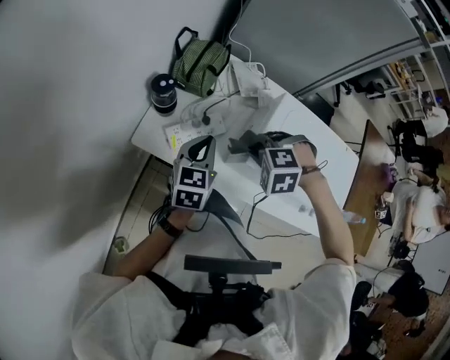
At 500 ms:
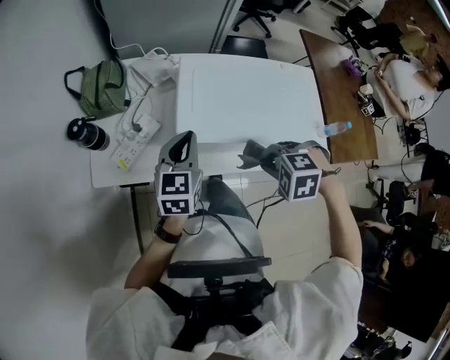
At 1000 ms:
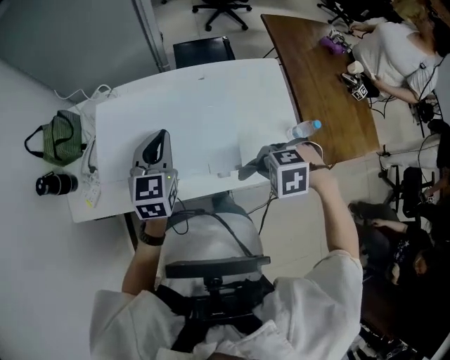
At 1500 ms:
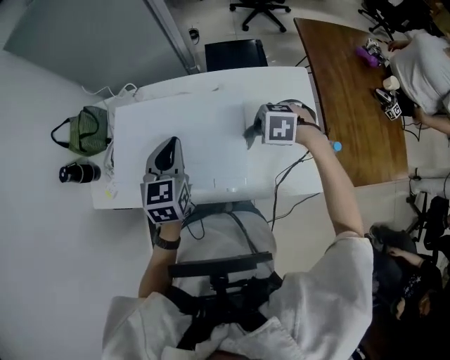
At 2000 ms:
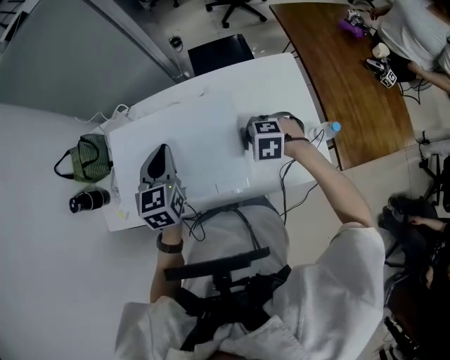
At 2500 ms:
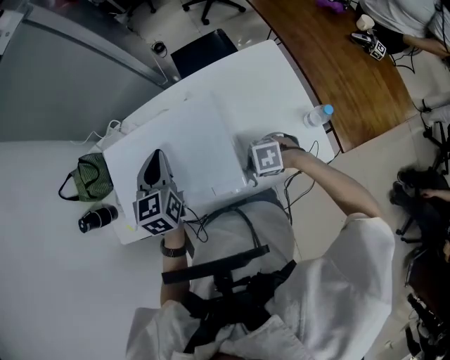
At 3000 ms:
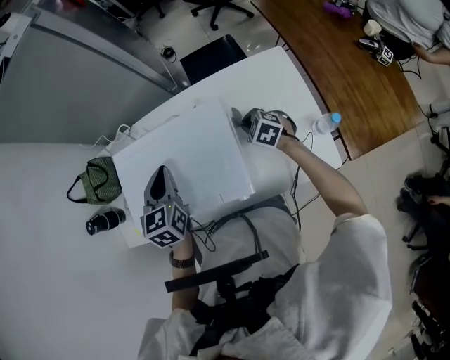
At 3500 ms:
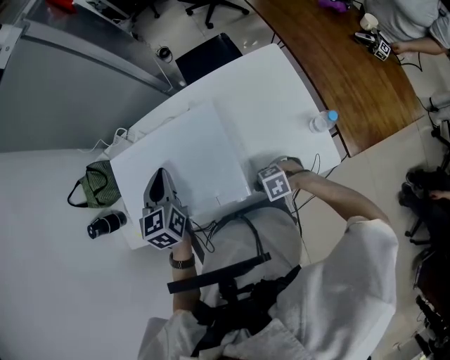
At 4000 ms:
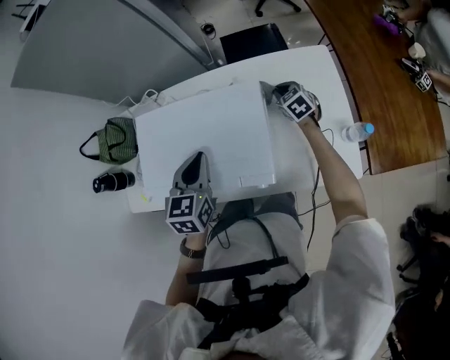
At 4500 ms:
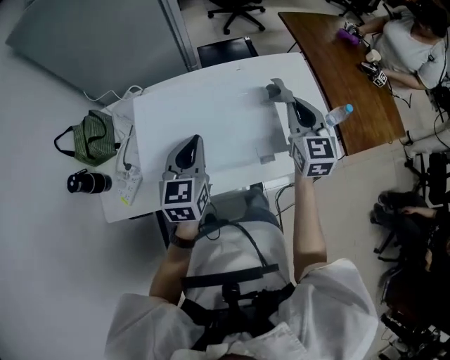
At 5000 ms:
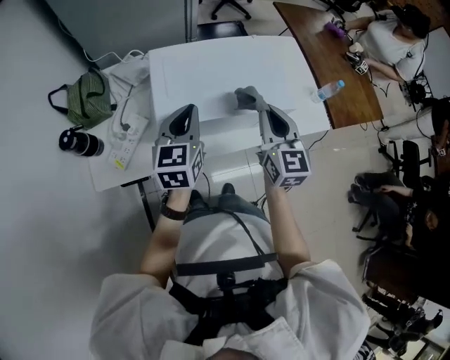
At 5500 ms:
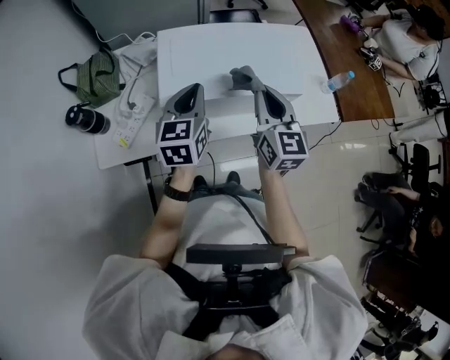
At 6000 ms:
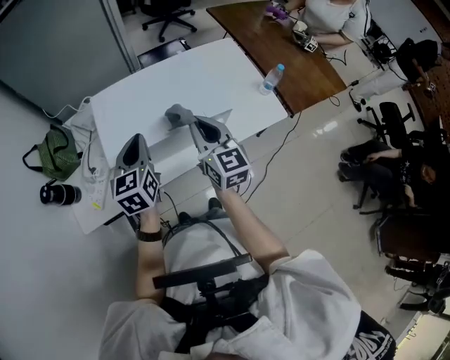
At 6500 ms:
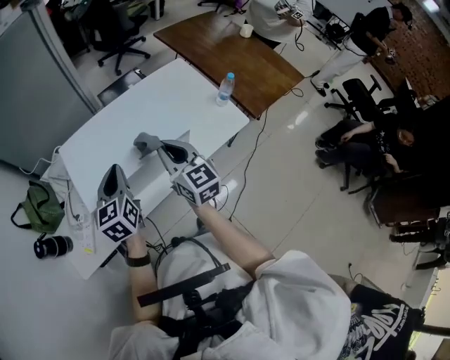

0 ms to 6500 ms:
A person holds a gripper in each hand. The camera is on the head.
0 ms to 2000 ms: The two grippers travel together, approximately 70 cm. The right gripper twists roughly 40 degrees clockwise, seen from behind. The left gripper swivels roughly 20 degrees.
2000 ms to 4500 ms: The right gripper is displaced upward by some 20 cm, and angles its fingers upward, by roughly 60 degrees. Meanwhile the left gripper changes place by approximately 15 cm.
4500 ms to 6500 ms: The left gripper travels backward by some 10 cm, and goes to the left and returns, roughly 15 cm each way; the right gripper moves backward and to the left, approximately 25 cm.

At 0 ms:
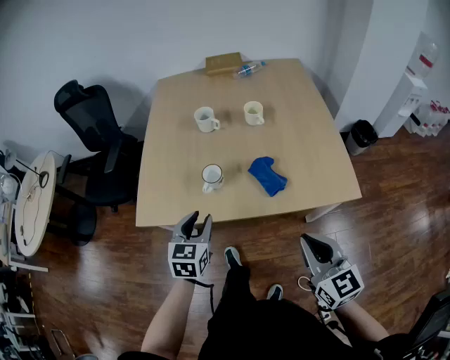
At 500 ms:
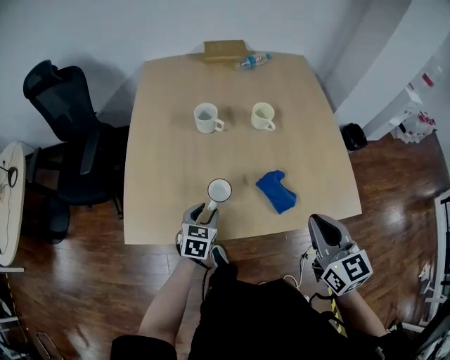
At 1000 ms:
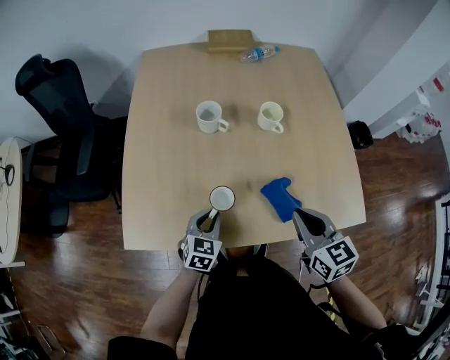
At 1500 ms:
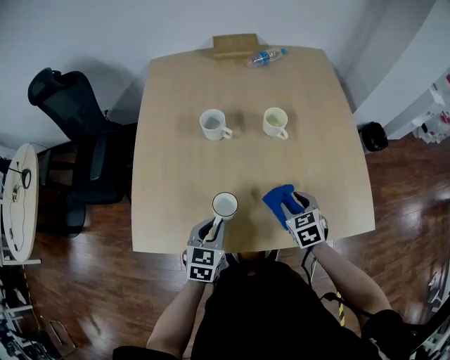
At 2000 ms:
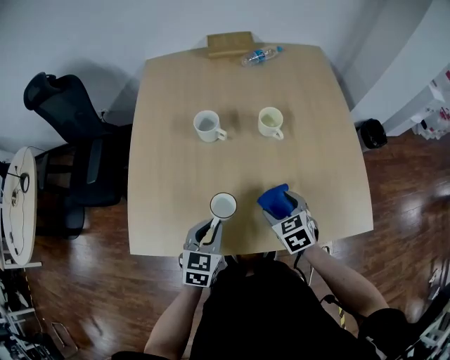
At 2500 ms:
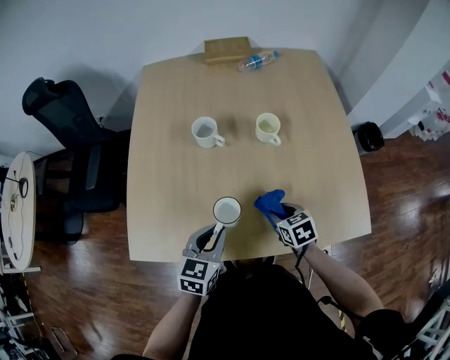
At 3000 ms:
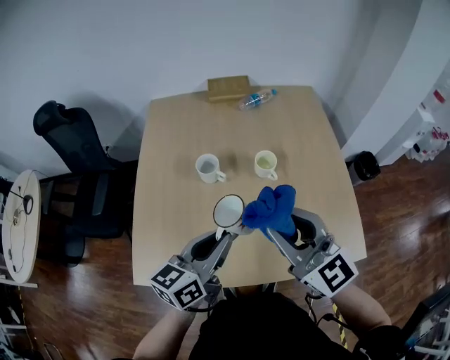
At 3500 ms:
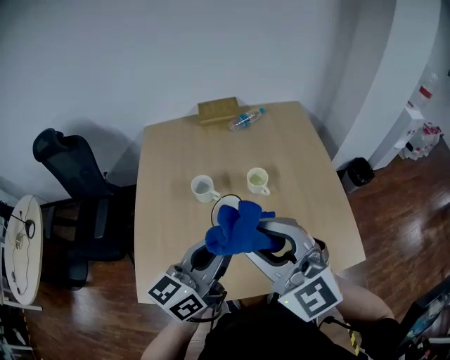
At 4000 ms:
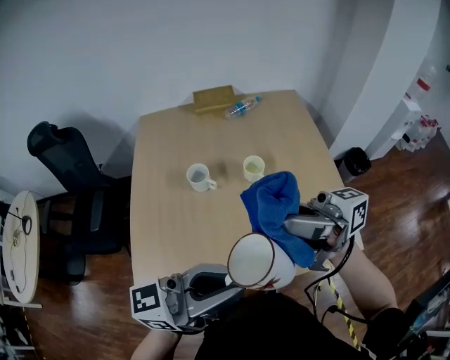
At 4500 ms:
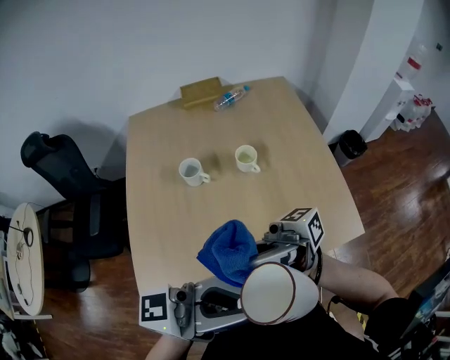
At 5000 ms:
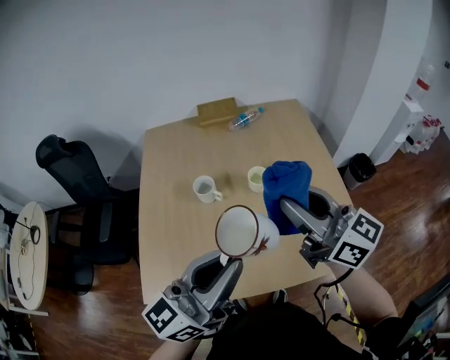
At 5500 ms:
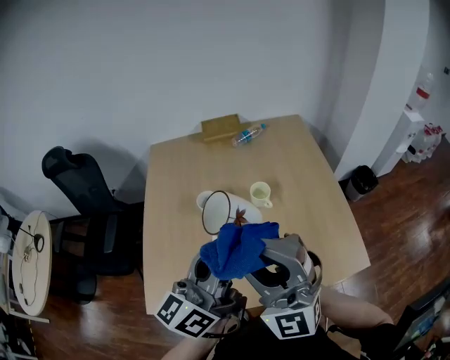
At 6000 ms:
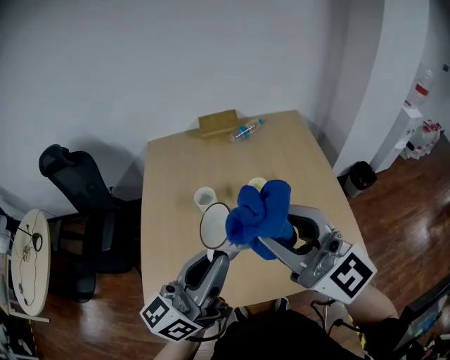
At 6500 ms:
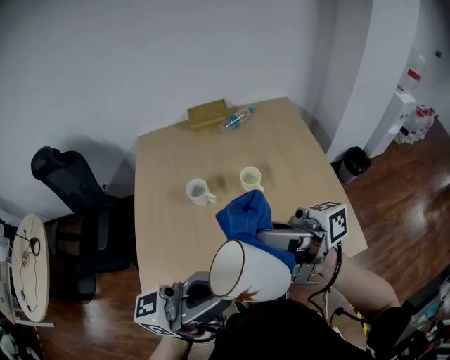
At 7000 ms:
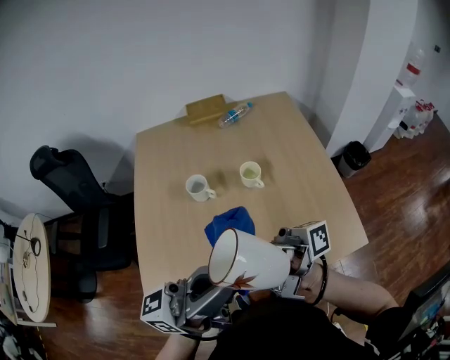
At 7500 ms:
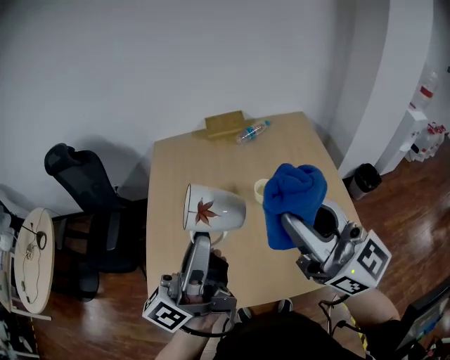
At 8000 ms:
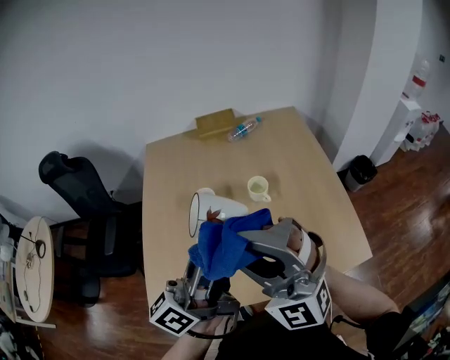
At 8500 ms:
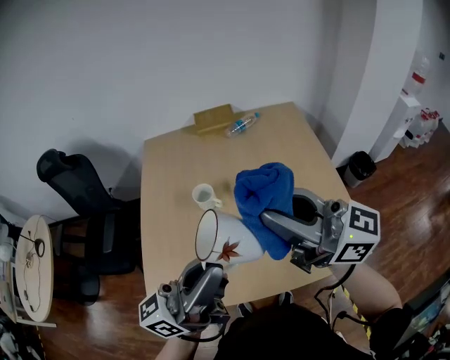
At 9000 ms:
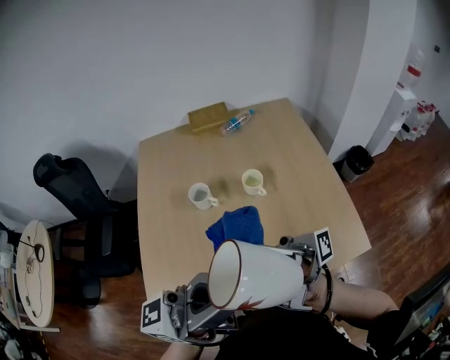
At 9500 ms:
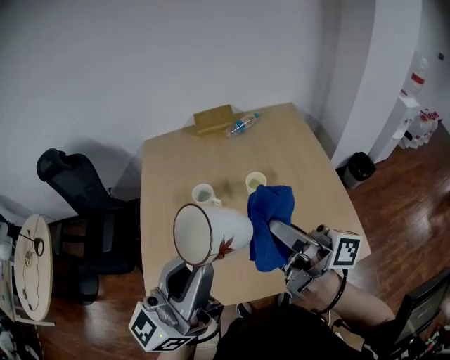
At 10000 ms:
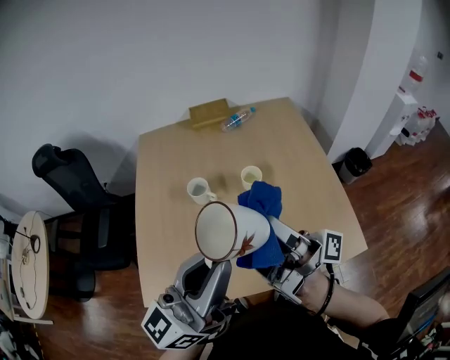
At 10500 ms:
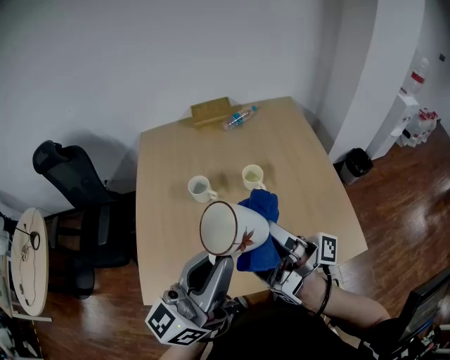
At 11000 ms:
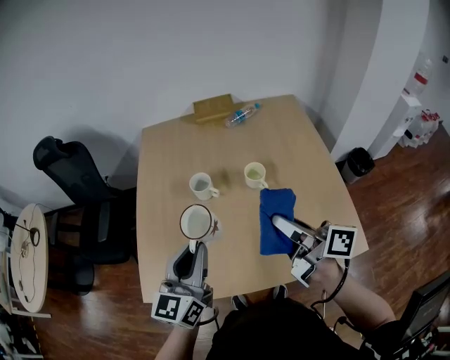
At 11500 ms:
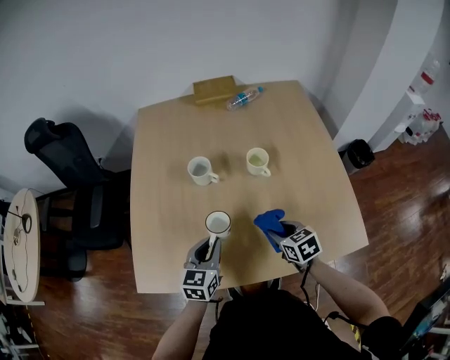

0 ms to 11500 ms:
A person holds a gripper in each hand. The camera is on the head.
0 ms to 2000 ms: The left gripper is displaced forward and downward by approximately 15 cm. The right gripper goes roughly 35 cm forward and downward, tips its fingers downward by approximately 40 degrees, and opens up.
2000 ms to 4000 ms: Both grippers travel together upward, some 40 cm. The right gripper tilts its fingers approximately 80 degrees upward, and closes its fingers, while the left gripper tilts its fingers about 60 degrees upward.
4000 ms to 6000 ms: The right gripper rolls counterclockwise, seen from behind, by roughly 60 degrees; the left gripper changes place by roughly 10 cm, and changes its angle by roughly 30 degrees.
6000 ms to 7500 ms: The left gripper turns by roughly 30 degrees.
7500 ms to 9500 ms: The right gripper heads downward, covering about 10 cm, and twists approximately 60 degrees clockwise, seen from behind; the left gripper changes its angle by roughly 30 degrees.
9500 ms to 11500 ms: The two grippers go roughly 35 cm downward. The left gripper tips its fingers downward by some 50 degrees, while the right gripper points its fingers some 70 degrees further downward.

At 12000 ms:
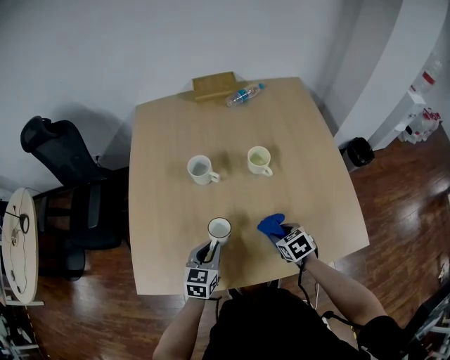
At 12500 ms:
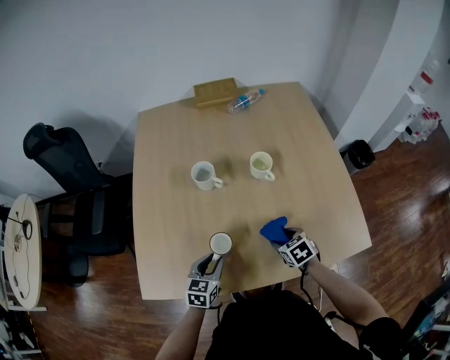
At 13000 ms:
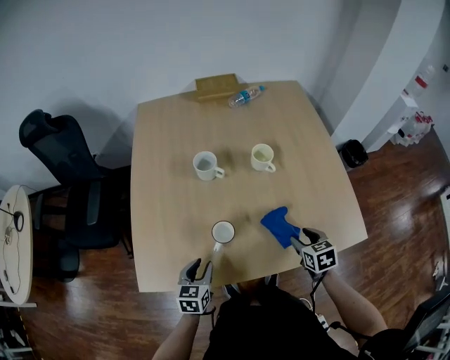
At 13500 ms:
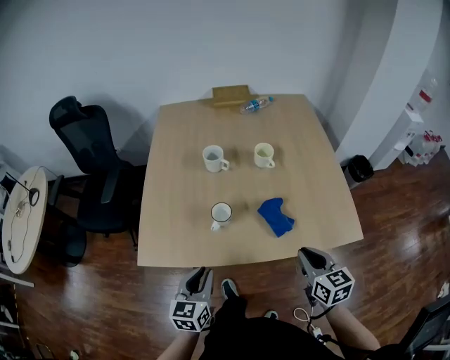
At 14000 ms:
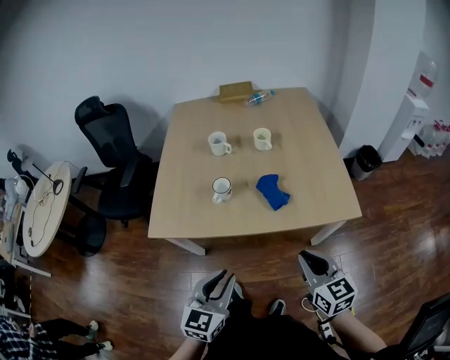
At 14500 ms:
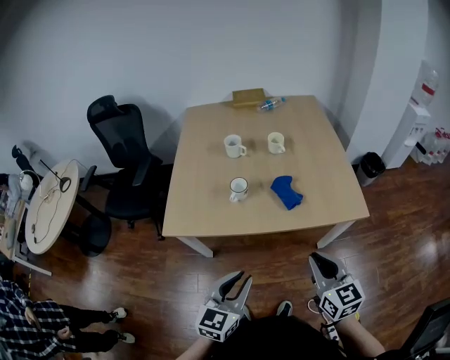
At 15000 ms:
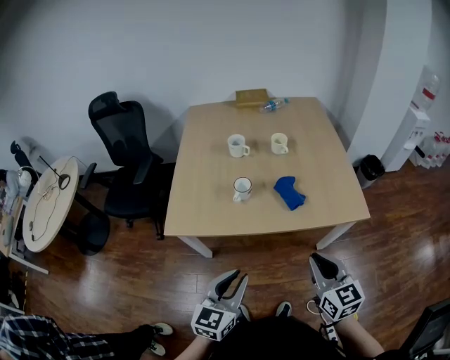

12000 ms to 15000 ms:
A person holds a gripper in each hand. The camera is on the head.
12000 ms to 13500 ms: The left gripper travels backward and upward by roughly 20 cm. The right gripper travels upward and backward by roughly 25 cm, angles its fingers upward, by roughly 30 degrees, and opens and closes again.
13500 ms to 15000 ms: The two grippers go roughly 20 cm backward and upward.

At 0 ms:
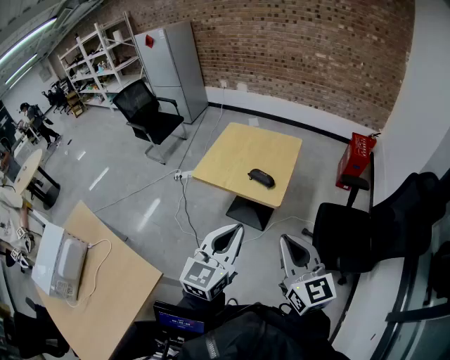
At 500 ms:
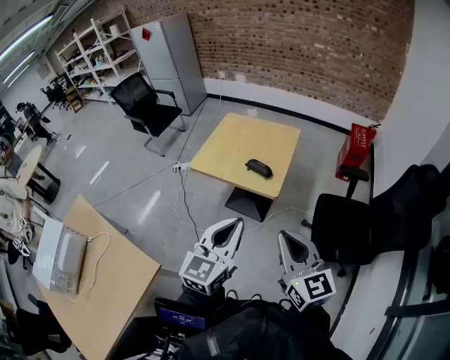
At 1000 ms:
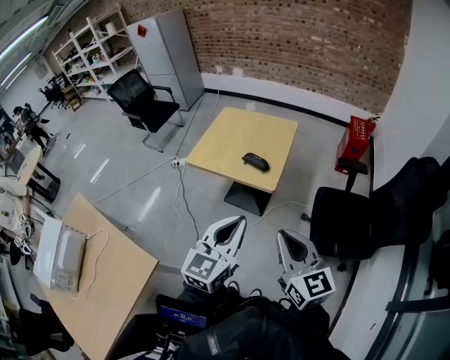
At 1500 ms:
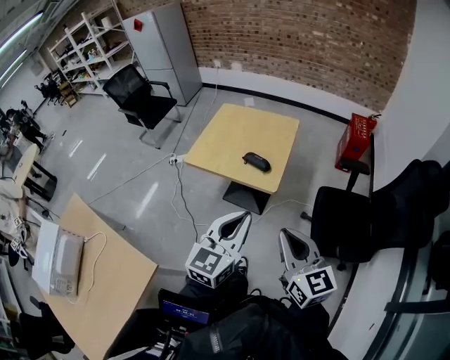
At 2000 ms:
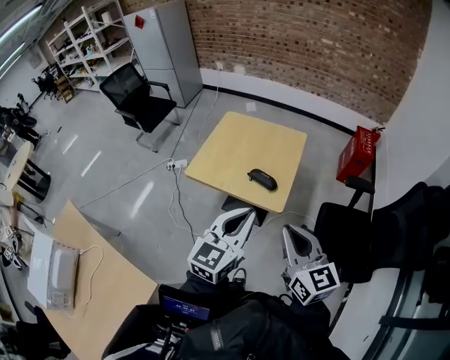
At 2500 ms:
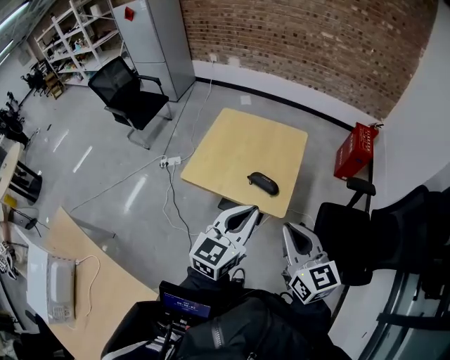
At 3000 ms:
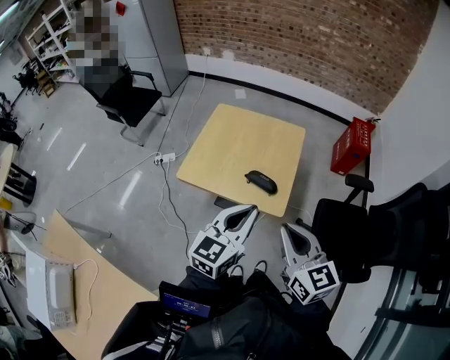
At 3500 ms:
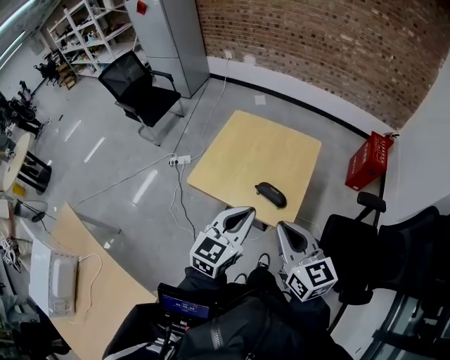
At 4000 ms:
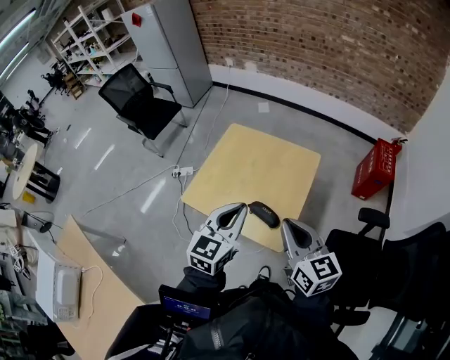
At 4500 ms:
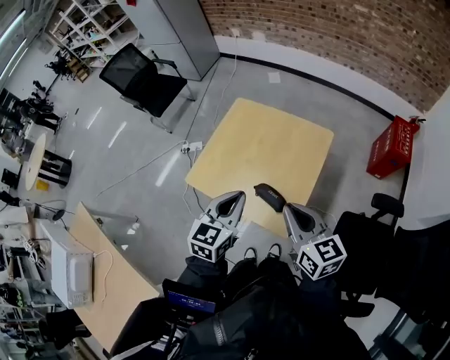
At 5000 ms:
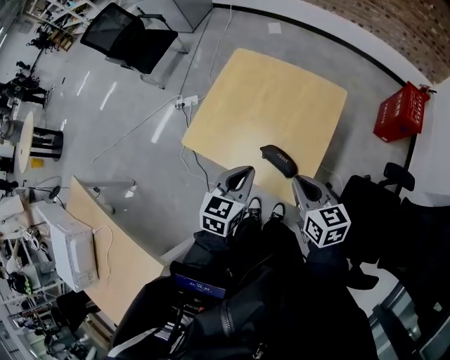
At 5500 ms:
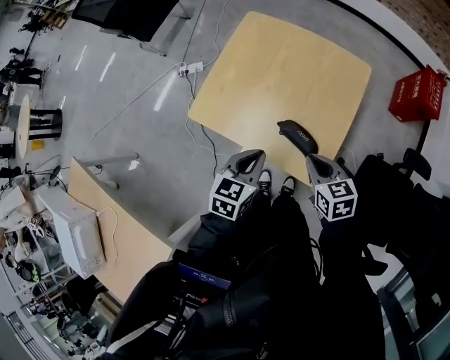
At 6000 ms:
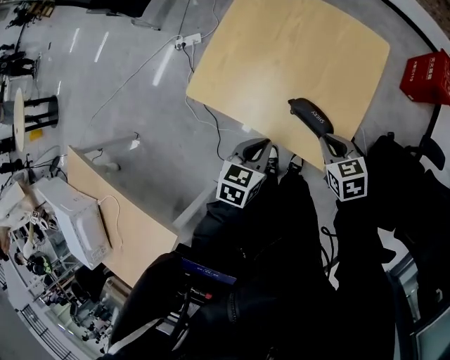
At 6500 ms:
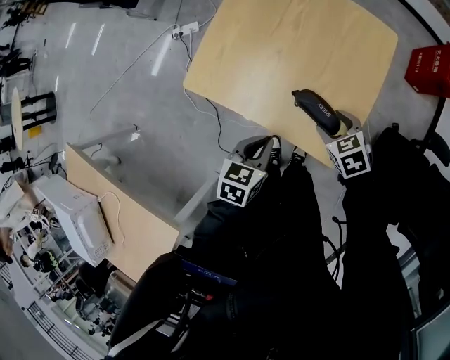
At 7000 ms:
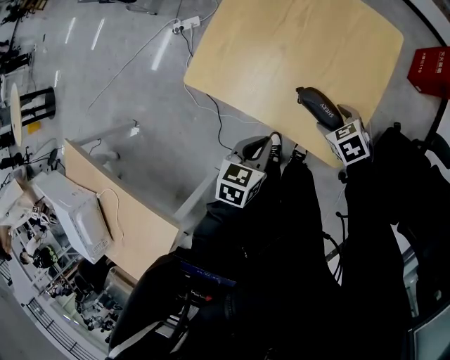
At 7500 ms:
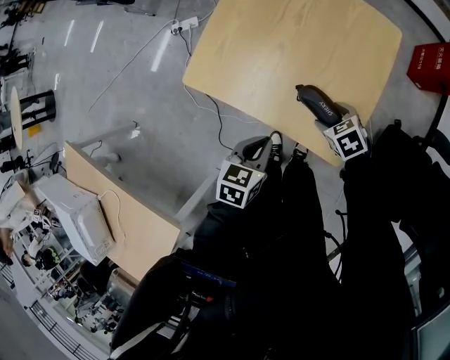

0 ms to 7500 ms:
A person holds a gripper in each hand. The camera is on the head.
0 ms to 2000 ms: Both grippers move forward, some 15 cm.
2000 ms to 4000 ms: Both grippers move forward, approximately 25 cm.
4000 ms to 5500 ms: Both grippers move downward, about 25 cm. The left gripper changes its angle by approximately 30 degrees, while the right gripper tilts its fingers about 30 degrees downward.
5500 ms to 7500 ms: The right gripper heads downward, covering approximately 20 cm, turns by some 30 degrees, and opens its fingers; the left gripper moves downward, some 10 cm.
